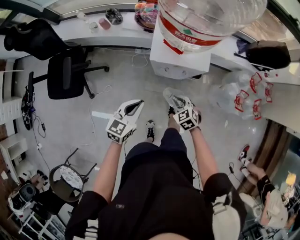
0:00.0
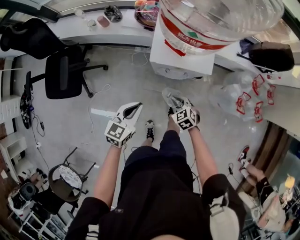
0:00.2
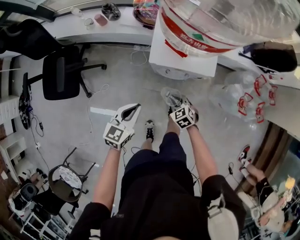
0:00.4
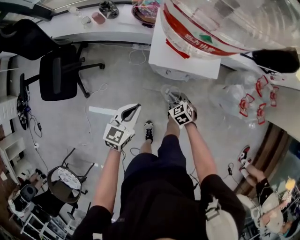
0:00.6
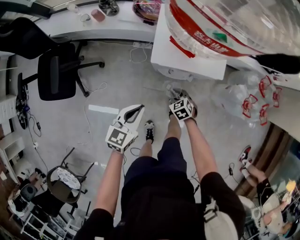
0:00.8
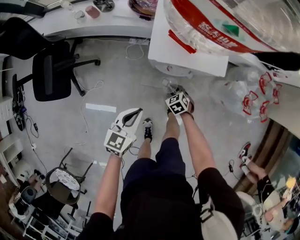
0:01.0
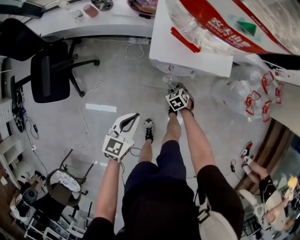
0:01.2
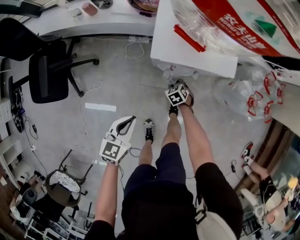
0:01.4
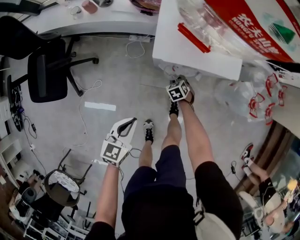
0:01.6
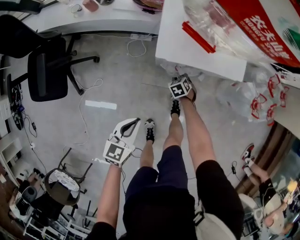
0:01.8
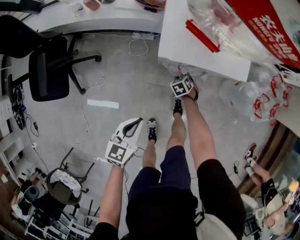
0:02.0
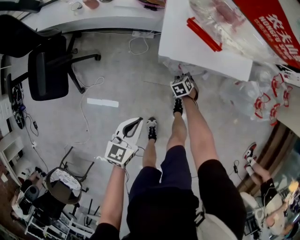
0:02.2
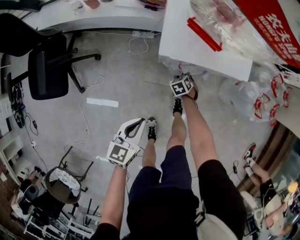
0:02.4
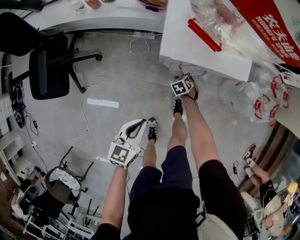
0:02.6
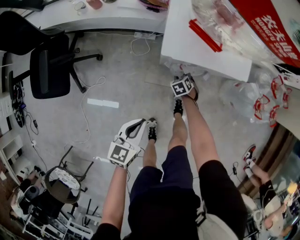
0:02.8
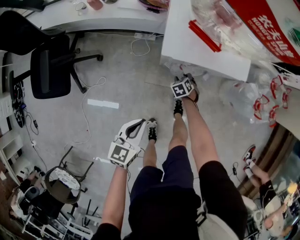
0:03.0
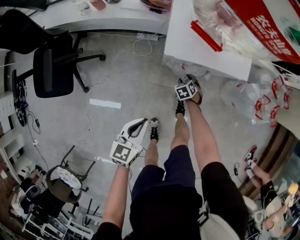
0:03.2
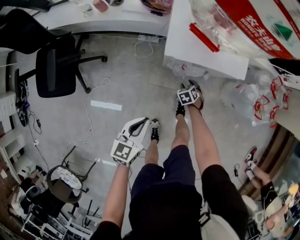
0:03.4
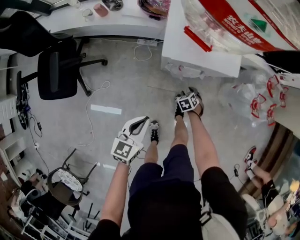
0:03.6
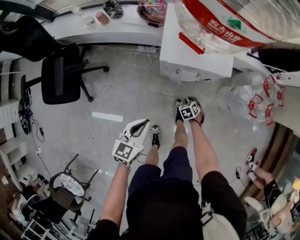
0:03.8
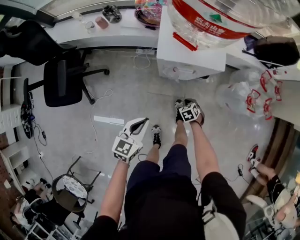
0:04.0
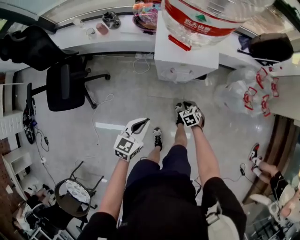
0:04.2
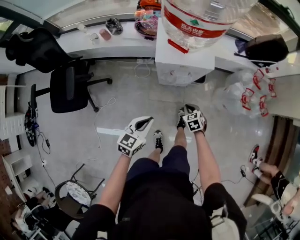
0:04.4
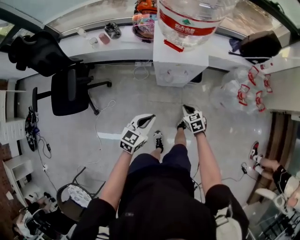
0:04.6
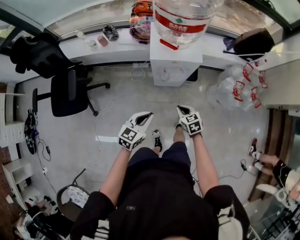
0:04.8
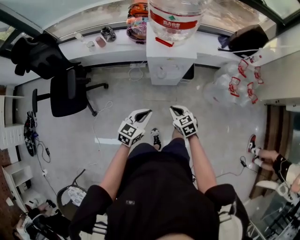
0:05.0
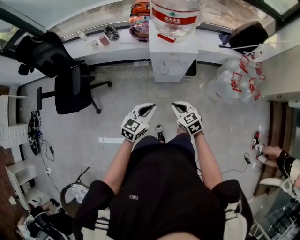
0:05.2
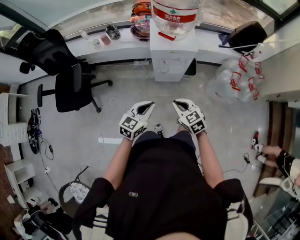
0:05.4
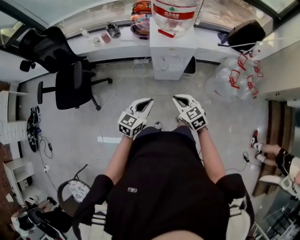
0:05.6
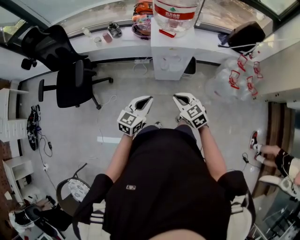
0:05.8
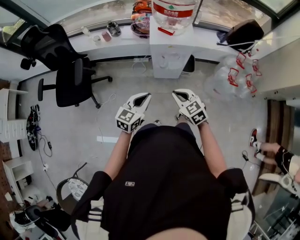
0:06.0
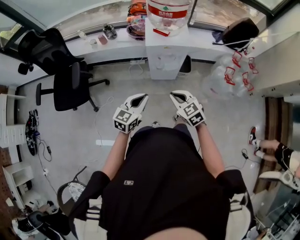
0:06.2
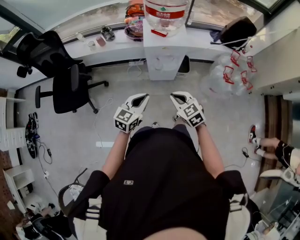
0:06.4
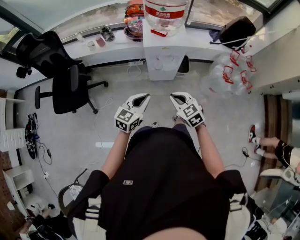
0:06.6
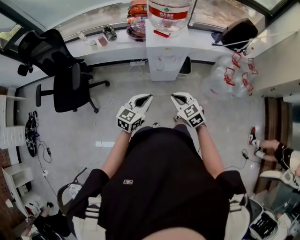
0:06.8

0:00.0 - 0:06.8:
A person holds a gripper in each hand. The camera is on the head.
0:00.0 - 0:01.4: The right gripper travels downward by some 30 cm, while the left gripper goes about 15 cm downward.
0:01.4 - 0:02.8: The right gripper moves about 5 cm.
0:02.8 - 0:04.0: The left gripper shifts approximately 10 cm upward. The right gripper travels backward, upward and to the right by about 20 cm, and closes.
0:04.0 - 0:05.4: The left gripper moves upward and backward, some 15 cm. Meanwhile the right gripper goes roughly 40 cm upward and backward, and points its fingers roughly 30 degrees further upward.
0:05.4 - 0:06.8: The grippers move only a little.

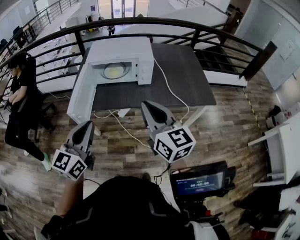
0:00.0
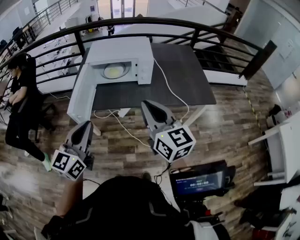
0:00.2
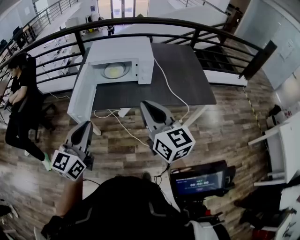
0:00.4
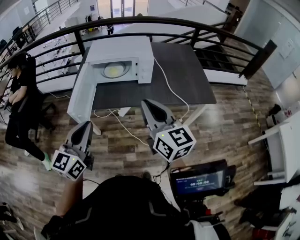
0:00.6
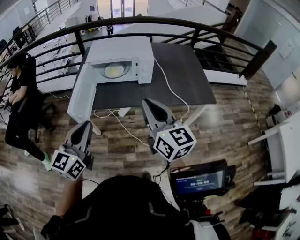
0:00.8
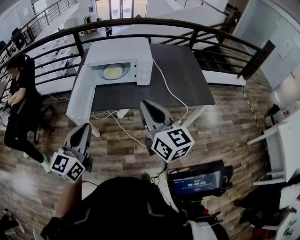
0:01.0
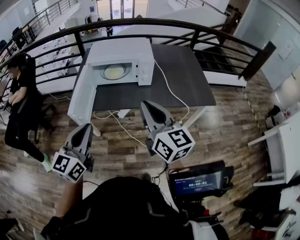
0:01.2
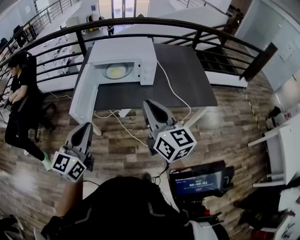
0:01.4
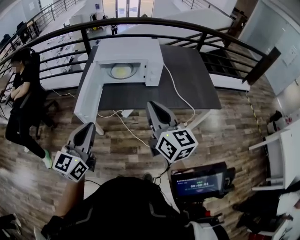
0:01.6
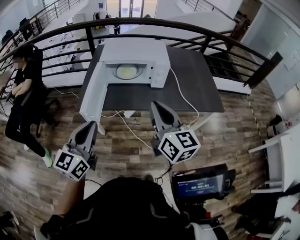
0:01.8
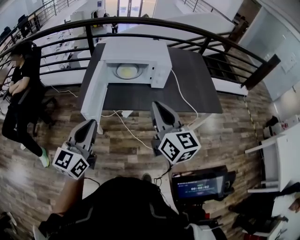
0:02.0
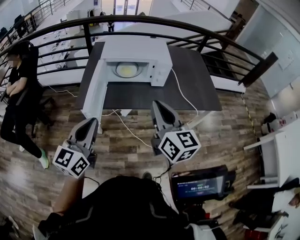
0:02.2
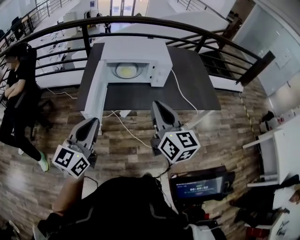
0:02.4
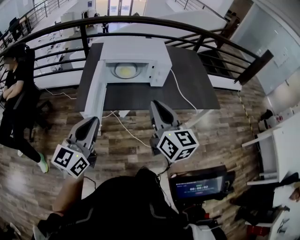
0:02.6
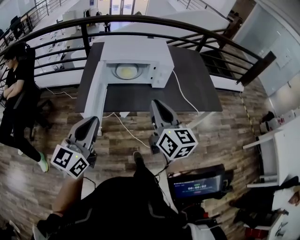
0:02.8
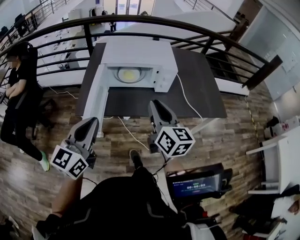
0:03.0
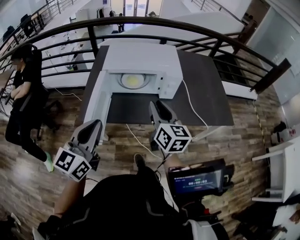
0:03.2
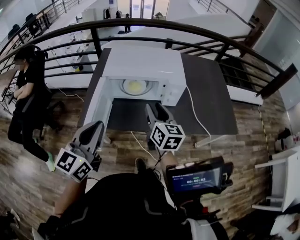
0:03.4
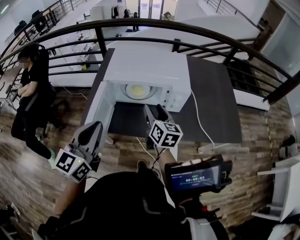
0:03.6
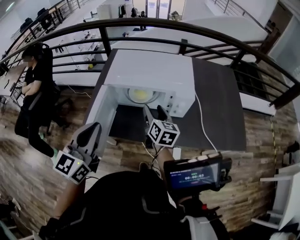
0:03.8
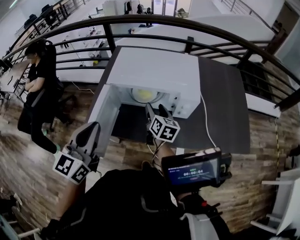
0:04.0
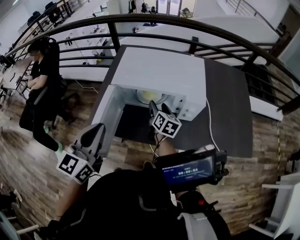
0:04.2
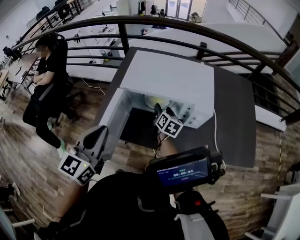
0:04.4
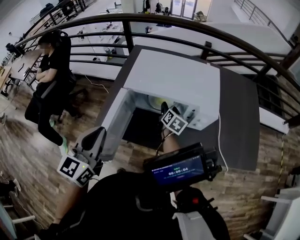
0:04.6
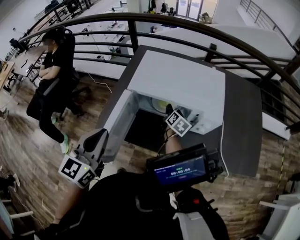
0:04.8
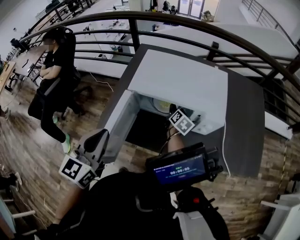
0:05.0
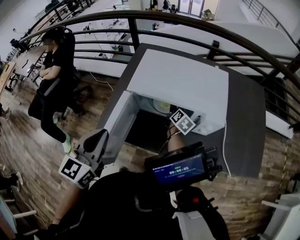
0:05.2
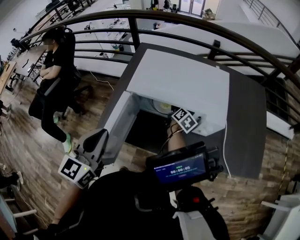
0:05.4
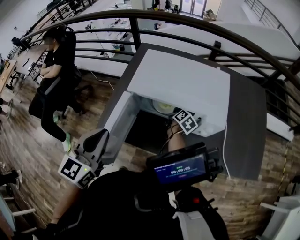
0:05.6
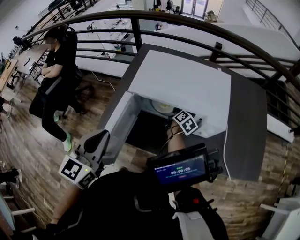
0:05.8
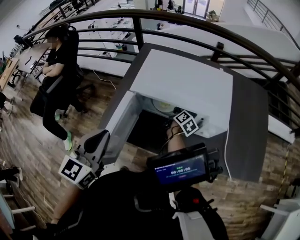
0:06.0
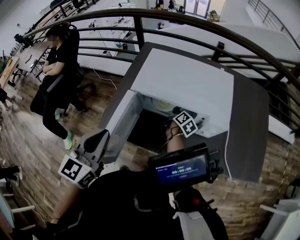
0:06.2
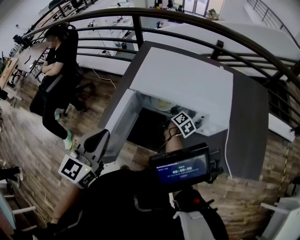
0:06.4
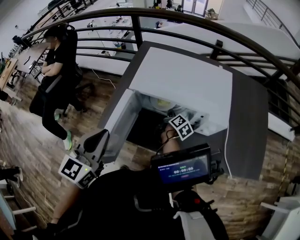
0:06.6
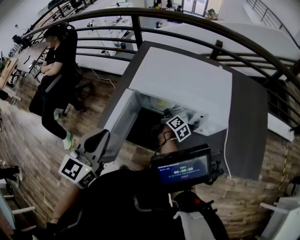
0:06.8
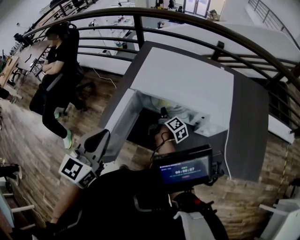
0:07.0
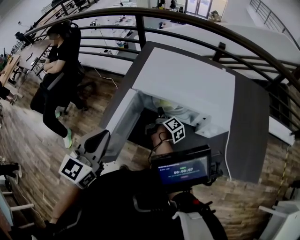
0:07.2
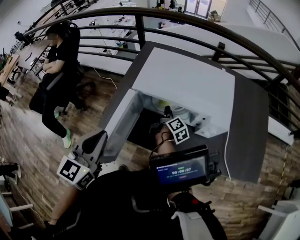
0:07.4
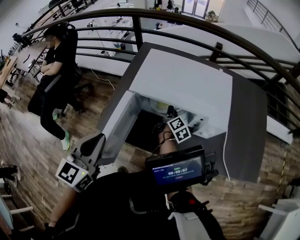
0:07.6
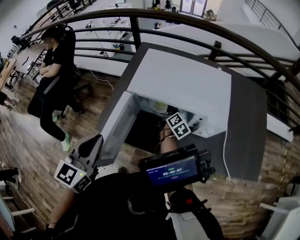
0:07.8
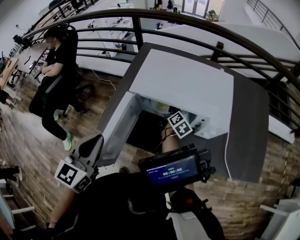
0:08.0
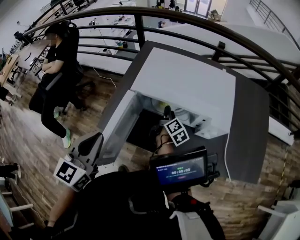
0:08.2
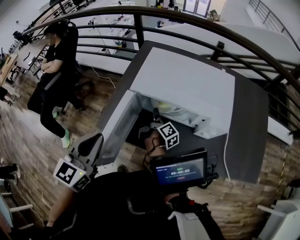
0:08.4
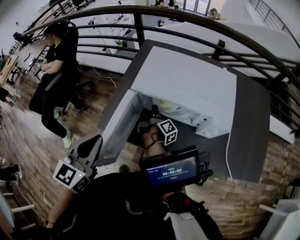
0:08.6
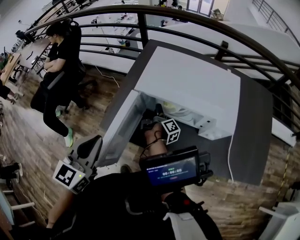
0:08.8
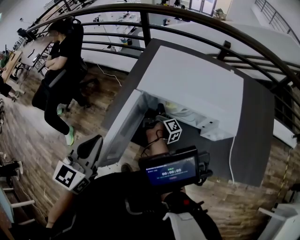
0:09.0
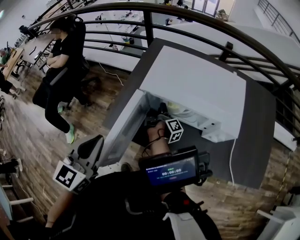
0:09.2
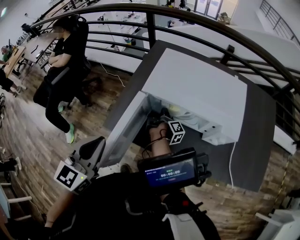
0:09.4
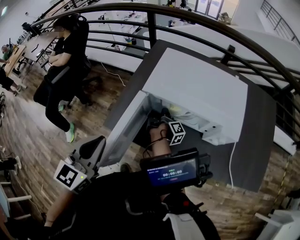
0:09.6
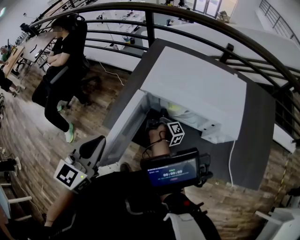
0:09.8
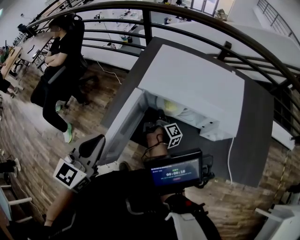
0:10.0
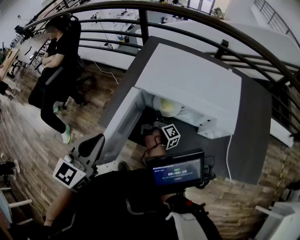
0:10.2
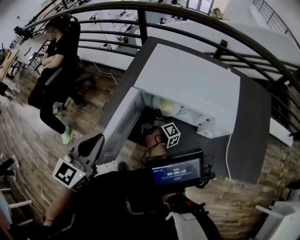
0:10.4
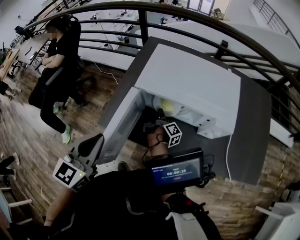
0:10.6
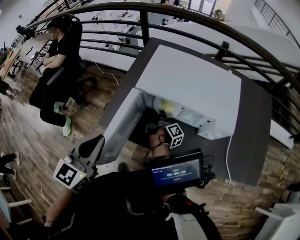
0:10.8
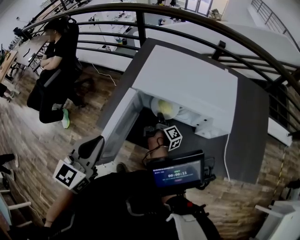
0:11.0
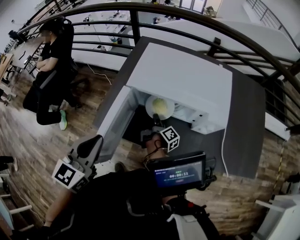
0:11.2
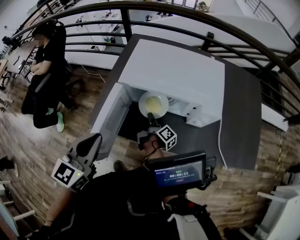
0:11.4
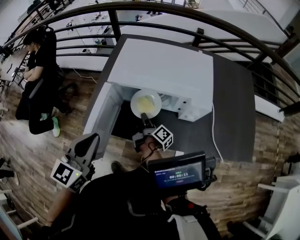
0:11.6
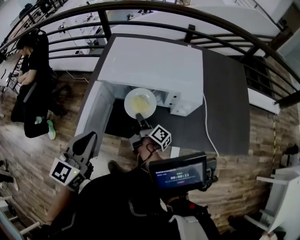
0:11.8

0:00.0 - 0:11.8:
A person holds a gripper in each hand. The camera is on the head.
0:00.0 - 0:01.4: The grippers stay close to where they were, moving slightly.
0:01.4 - 0:03.0: The right gripper goes about 15 cm forward, to the left and downward. Meanwhile the left gripper moves to the left and forward, some 10 cm.
0:03.0 - 0:04.4: The left gripper heads forward, covering about 20 cm; the right gripper shifts some 40 cm forward and downward, swivels roughly 30 degrees, and opens up.
0:04.4 - 0:06.0: The right gripper is displaced downward and forward by some 10 cm, changes its angle by roughly 30 degrees, and closes up.
0:06.0 - 0:07.4: The right gripper heads to the left, covering approximately 5 cm, and opens.
0:07.4 - 0:08.8: The right gripper goes approximately 5 cm to the left, and turns by roughly 30 degrees.
0:08.8 - 0:10.4: The right gripper closes up.
0:10.4 - 0:11.8: The left gripper shifts approximately 10 cm to the right, while the right gripper moves backward and to the right, roughly 10 cm.

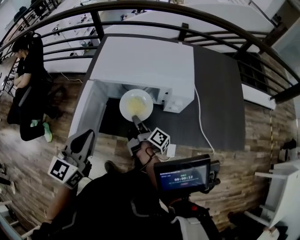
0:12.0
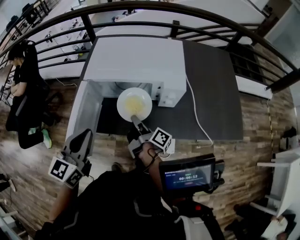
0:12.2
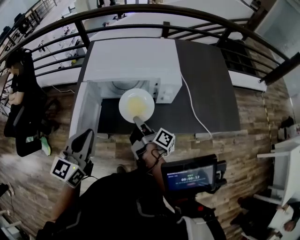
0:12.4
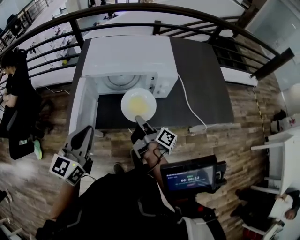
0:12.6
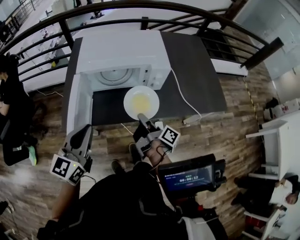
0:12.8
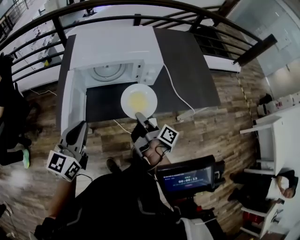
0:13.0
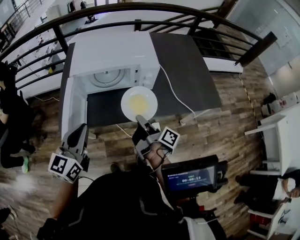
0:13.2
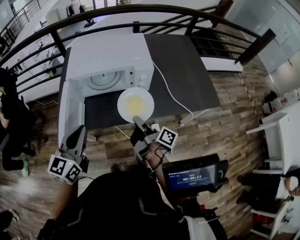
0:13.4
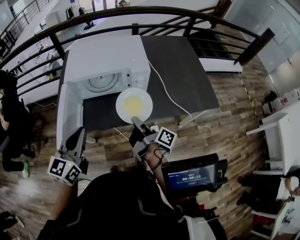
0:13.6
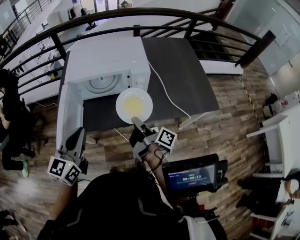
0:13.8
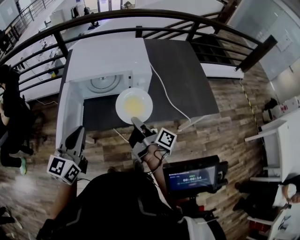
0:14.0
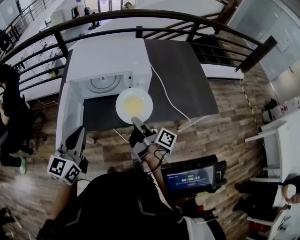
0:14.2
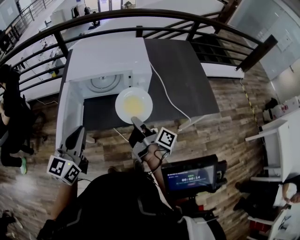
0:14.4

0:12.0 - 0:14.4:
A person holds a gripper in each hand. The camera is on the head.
0:12.0 - 0:13.2: The right gripper is displaced backward, to the right and upward by roughly 20 cm. The left gripper moves backward, approximately 5 cm.
0:13.2 - 0:14.4: There are only small adjustments of the grippers.

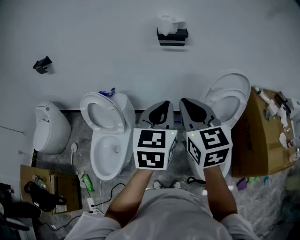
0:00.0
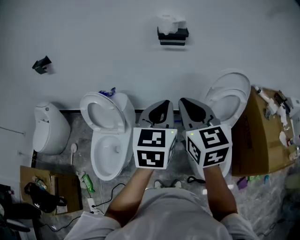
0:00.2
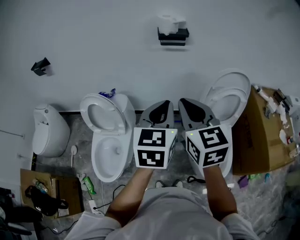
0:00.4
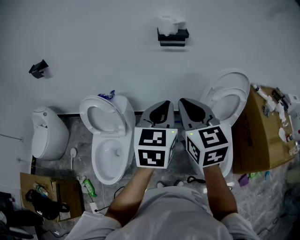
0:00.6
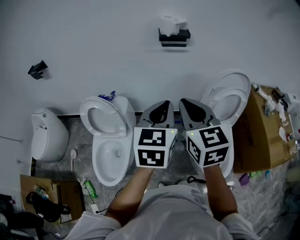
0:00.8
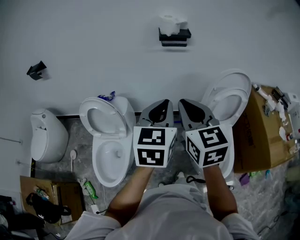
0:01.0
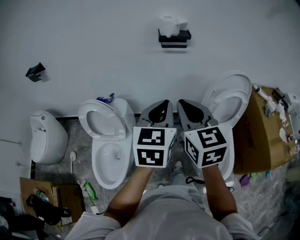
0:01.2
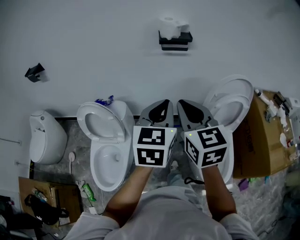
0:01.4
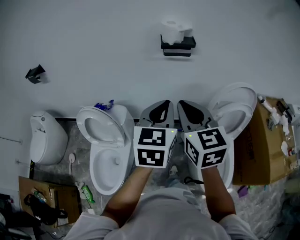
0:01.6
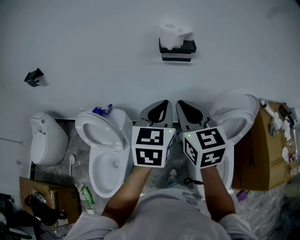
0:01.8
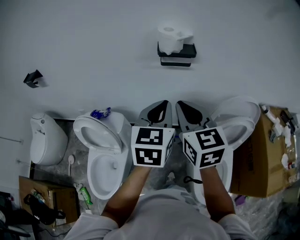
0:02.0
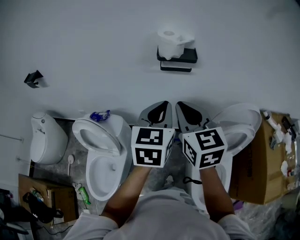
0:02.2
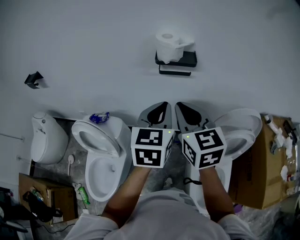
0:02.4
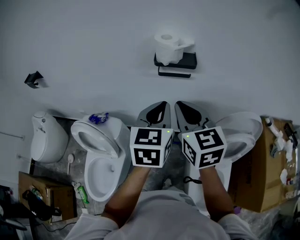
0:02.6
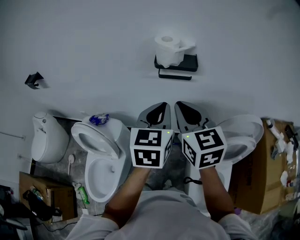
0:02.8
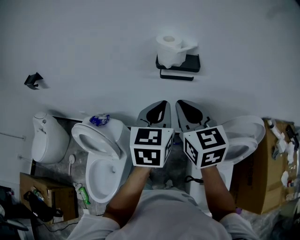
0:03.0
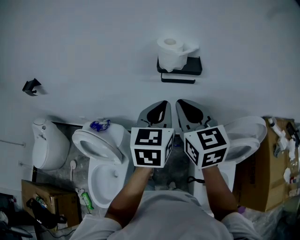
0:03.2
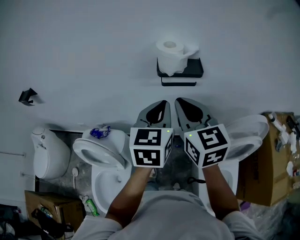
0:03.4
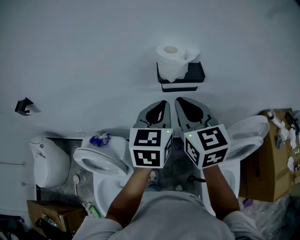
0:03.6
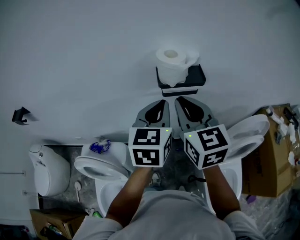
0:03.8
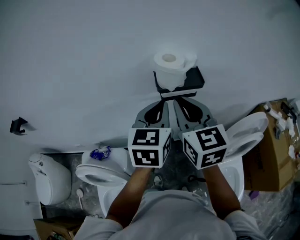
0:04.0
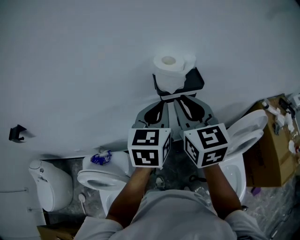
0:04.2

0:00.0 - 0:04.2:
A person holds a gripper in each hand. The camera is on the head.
0:00.0 - 0:01.4: The grippers both shift forward by approximately 5 cm.
0:01.4 - 0:02.8: The grippers both shift forward by roughly 20 cm.
0:02.8 - 0:04.2: The two grippers go approximately 10 cm forward.
